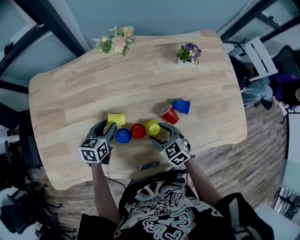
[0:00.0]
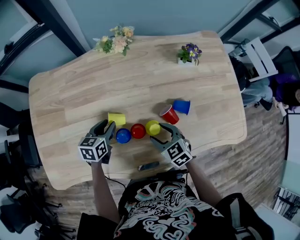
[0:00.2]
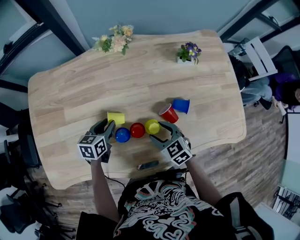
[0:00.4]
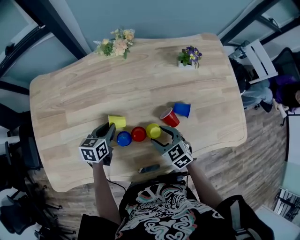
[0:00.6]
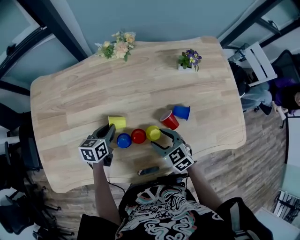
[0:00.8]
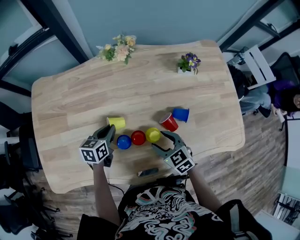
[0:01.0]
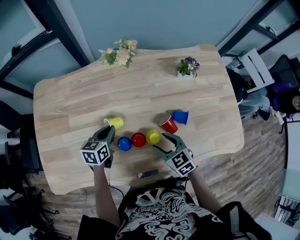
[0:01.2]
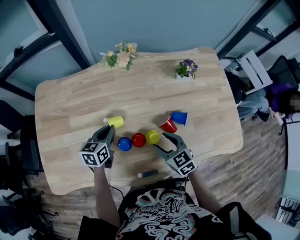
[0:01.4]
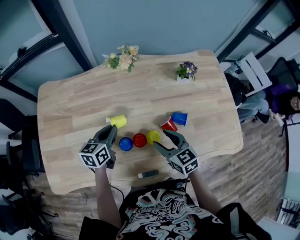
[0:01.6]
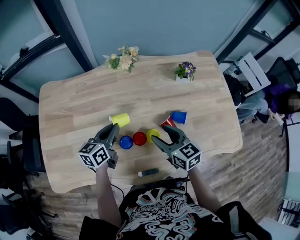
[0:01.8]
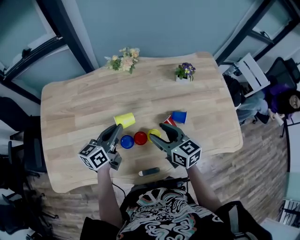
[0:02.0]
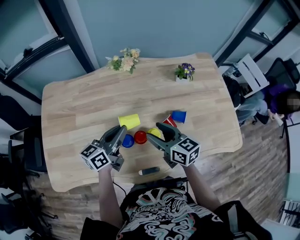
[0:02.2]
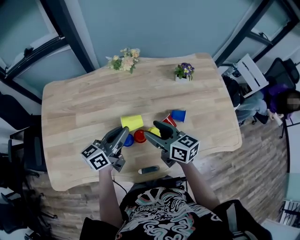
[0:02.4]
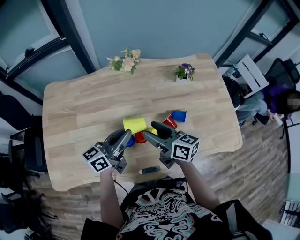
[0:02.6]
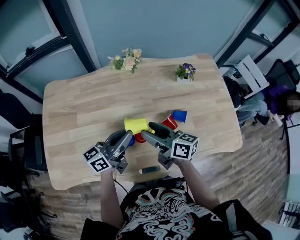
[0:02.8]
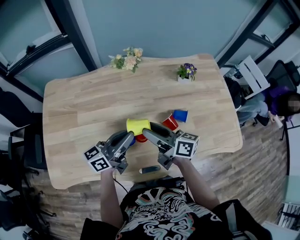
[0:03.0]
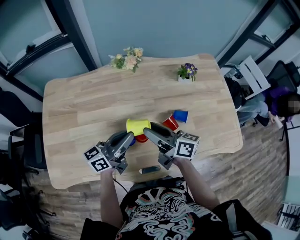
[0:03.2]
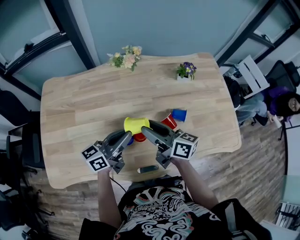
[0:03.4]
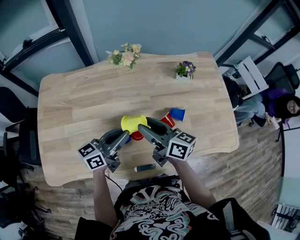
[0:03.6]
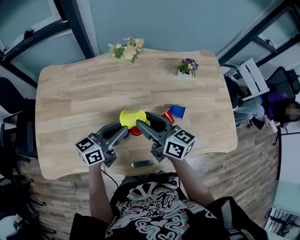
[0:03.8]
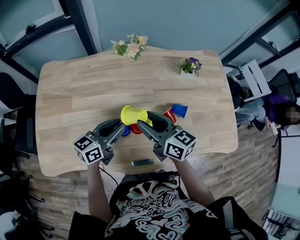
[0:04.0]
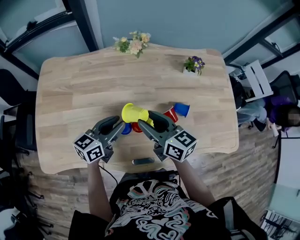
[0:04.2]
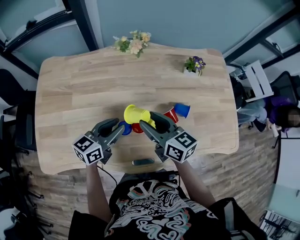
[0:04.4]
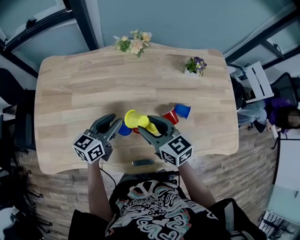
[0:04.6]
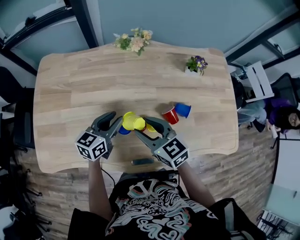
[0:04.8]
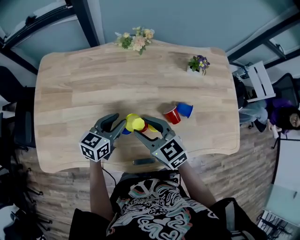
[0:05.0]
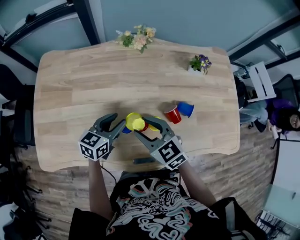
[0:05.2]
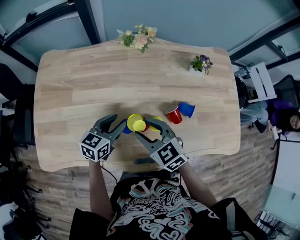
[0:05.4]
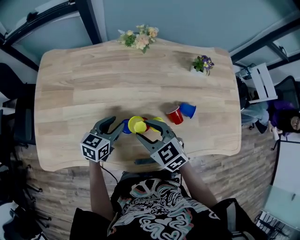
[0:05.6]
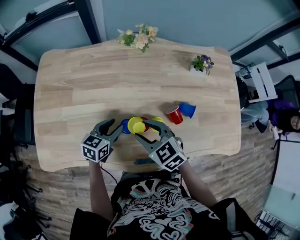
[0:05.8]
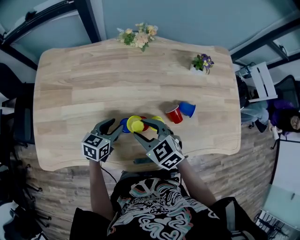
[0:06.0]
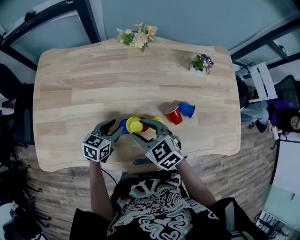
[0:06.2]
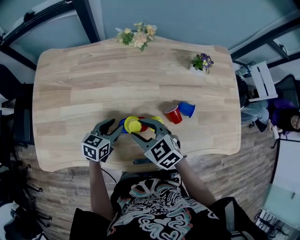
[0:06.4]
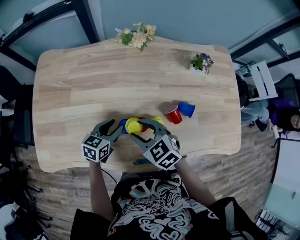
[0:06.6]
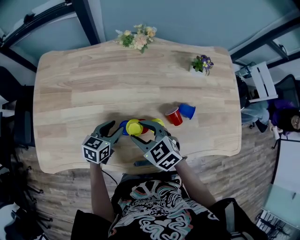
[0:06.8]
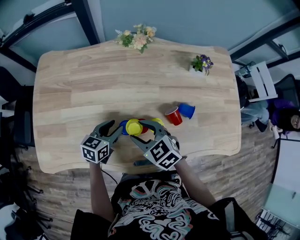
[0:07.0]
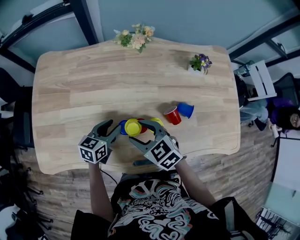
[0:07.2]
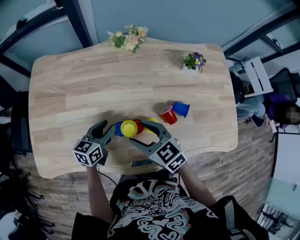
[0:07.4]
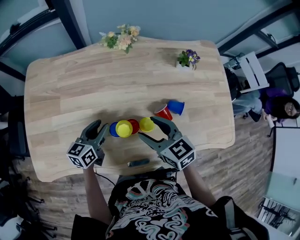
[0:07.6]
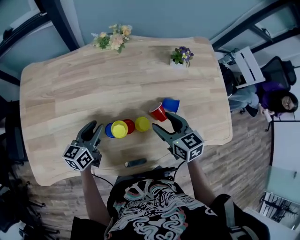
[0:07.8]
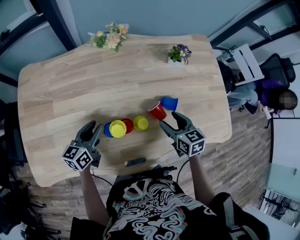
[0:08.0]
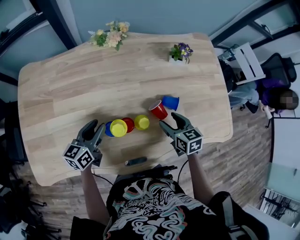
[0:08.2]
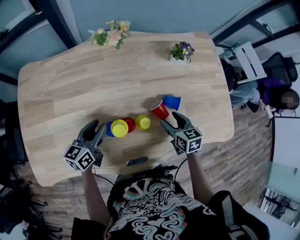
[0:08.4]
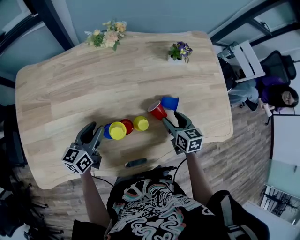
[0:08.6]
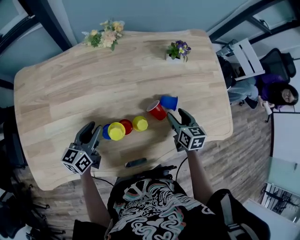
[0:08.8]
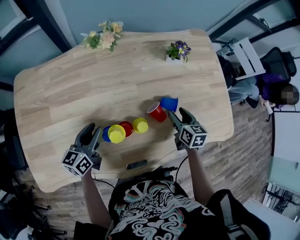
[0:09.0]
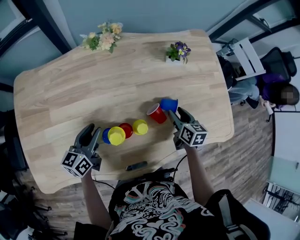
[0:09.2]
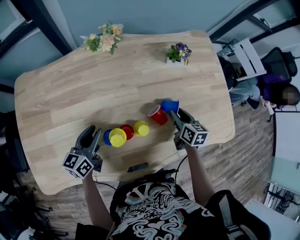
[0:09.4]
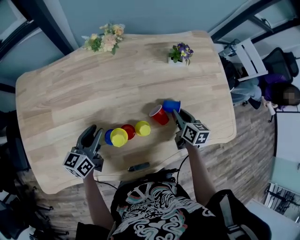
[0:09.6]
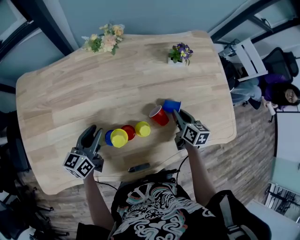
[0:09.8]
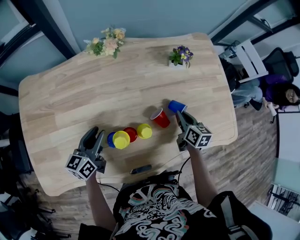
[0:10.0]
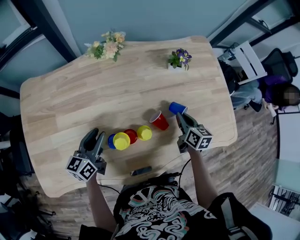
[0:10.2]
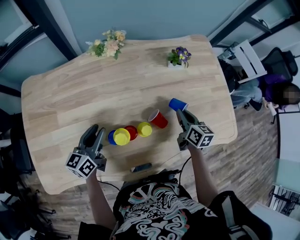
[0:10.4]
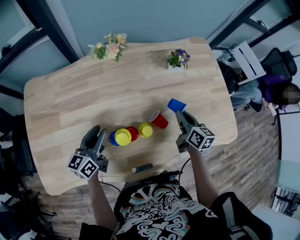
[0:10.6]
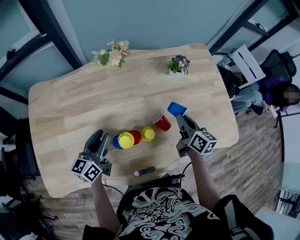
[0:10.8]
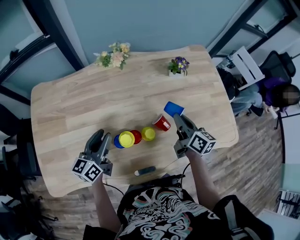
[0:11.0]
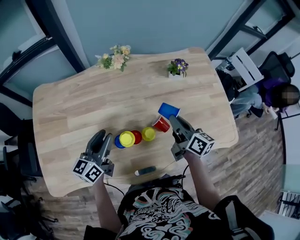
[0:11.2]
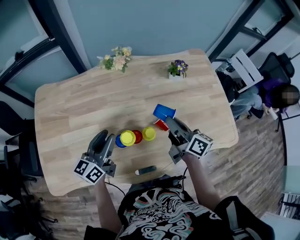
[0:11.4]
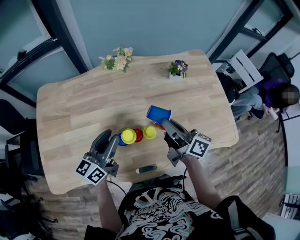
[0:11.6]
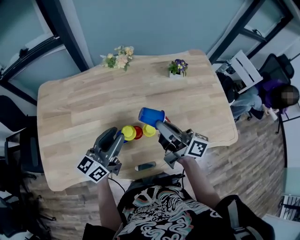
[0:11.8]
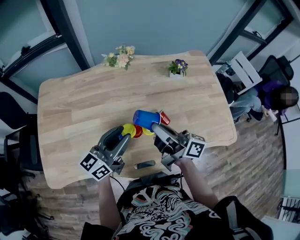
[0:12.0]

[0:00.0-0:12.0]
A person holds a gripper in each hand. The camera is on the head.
0:00.0 to 0:01.6: The two grippers go roughly 10 cm upward. The left gripper closes its fingers.
0:01.6 to 0:03.0: The left gripper travels upward, backward and to the right by about 15 cm, and angles its fingers upward, by roughly 40 degrees. The right gripper moves upward and to the left, approximately 10 cm, and swivels roughly 50 degrees.
0:03.0 to 0:04.4: The right gripper rotates some 30 degrees; the left gripper goes some 5 cm downward, changes its angle by some 30 degrees, and opens up.
0:04.4 to 0:06.0: The right gripper heads downward, covering approximately 5 cm, and changes its angle by about 40 degrees, while the left gripper moves downward, some 10 cm, and changes its angle by some 20 degrees.
0:06.0 to 0:07.6: The right gripper travels to the right by about 5 cm, and rotates approximately 20 degrees.
0:07.6 to 0:09.0: The right gripper is displaced to the right and downward by roughly 25 cm, and rotates approximately 40 degrees.
0:09.0 to 0:10.4: The right gripper closes up.
0:10.4 to 0:12.0: The left gripper travels upward, backward and to the right by some 15 cm, and changes its angle by approximately 20 degrees, while the right gripper goes approximately 25 cm upward, to the left and backward, and tips its fingers upward by about 40 degrees.

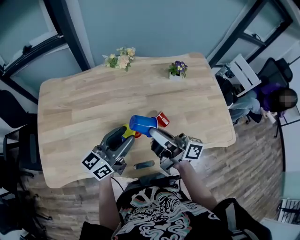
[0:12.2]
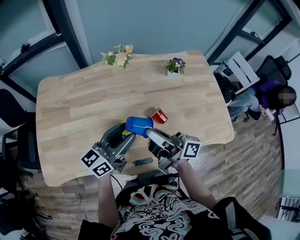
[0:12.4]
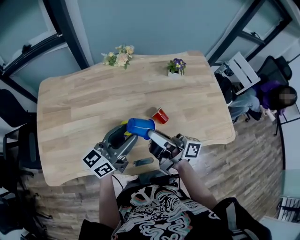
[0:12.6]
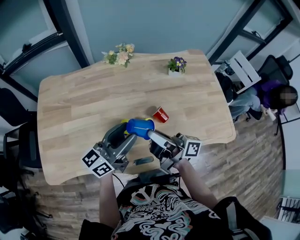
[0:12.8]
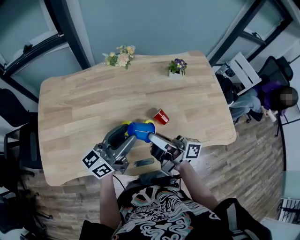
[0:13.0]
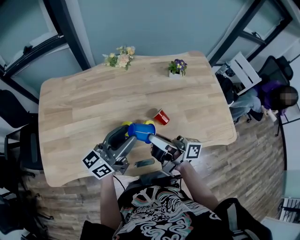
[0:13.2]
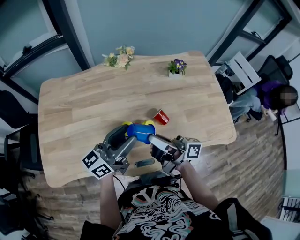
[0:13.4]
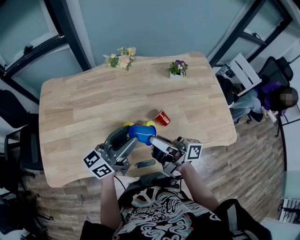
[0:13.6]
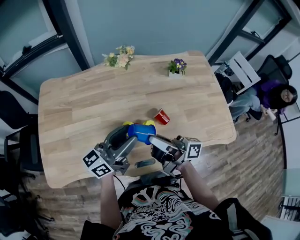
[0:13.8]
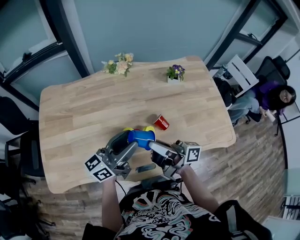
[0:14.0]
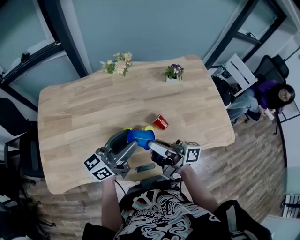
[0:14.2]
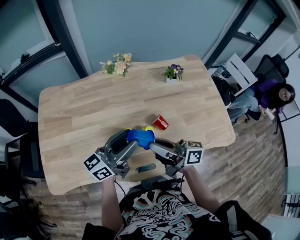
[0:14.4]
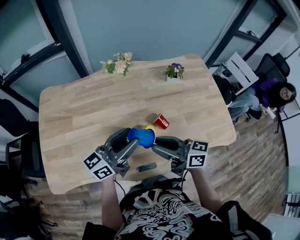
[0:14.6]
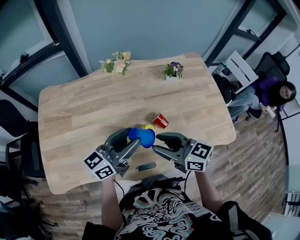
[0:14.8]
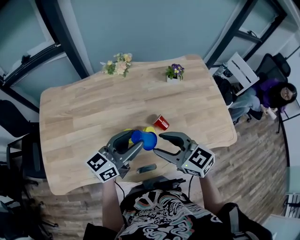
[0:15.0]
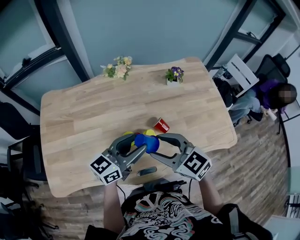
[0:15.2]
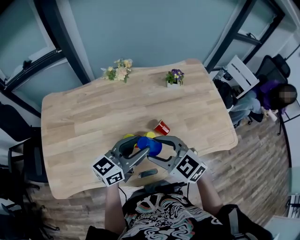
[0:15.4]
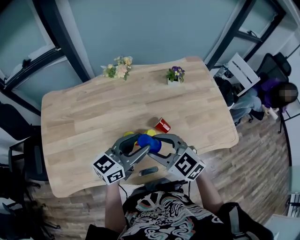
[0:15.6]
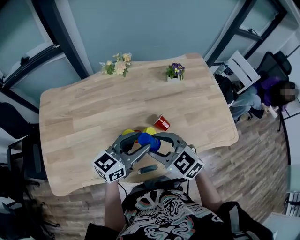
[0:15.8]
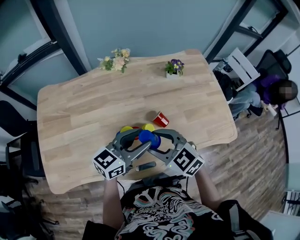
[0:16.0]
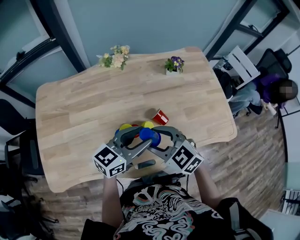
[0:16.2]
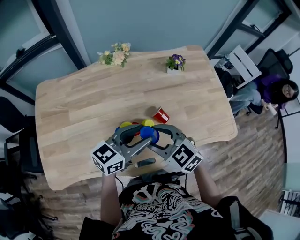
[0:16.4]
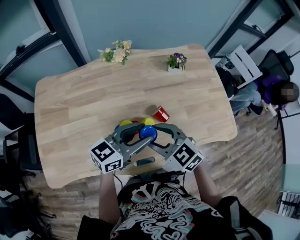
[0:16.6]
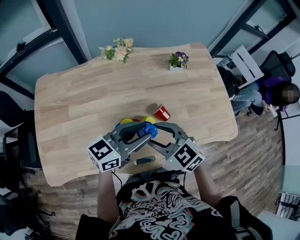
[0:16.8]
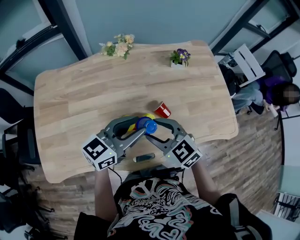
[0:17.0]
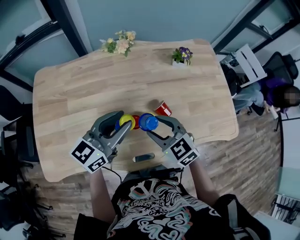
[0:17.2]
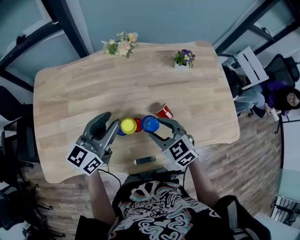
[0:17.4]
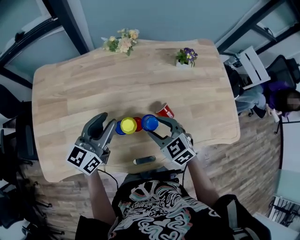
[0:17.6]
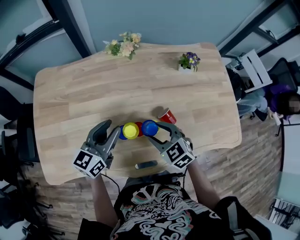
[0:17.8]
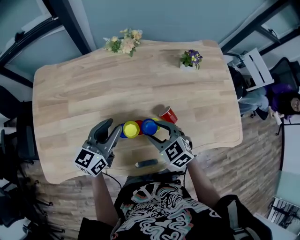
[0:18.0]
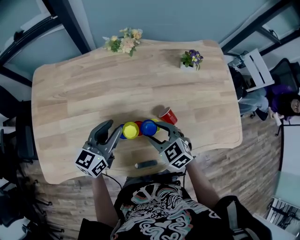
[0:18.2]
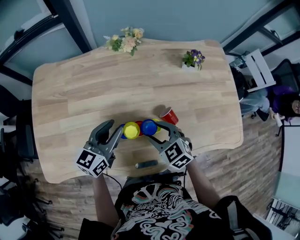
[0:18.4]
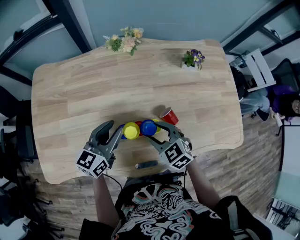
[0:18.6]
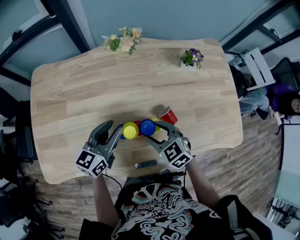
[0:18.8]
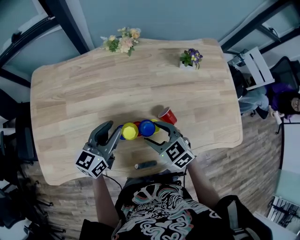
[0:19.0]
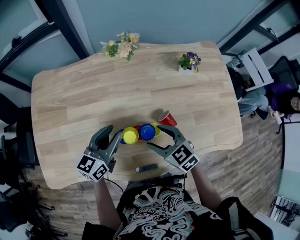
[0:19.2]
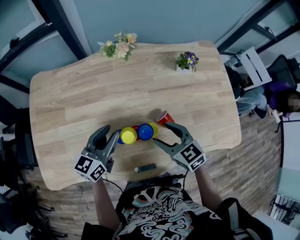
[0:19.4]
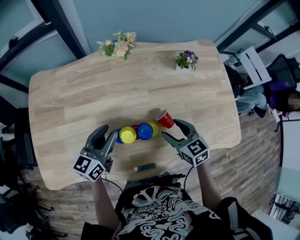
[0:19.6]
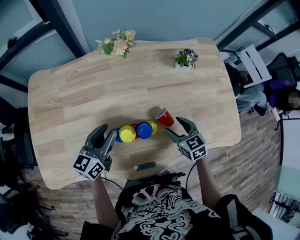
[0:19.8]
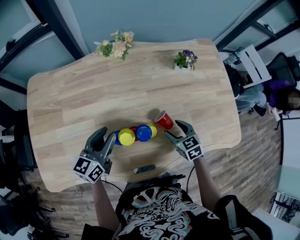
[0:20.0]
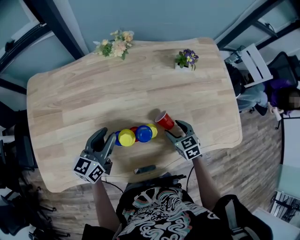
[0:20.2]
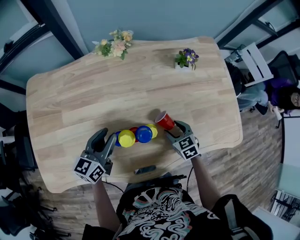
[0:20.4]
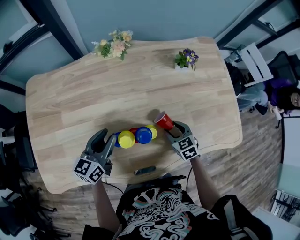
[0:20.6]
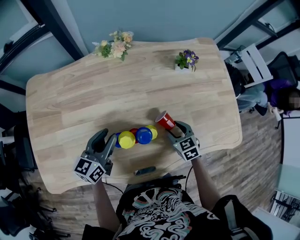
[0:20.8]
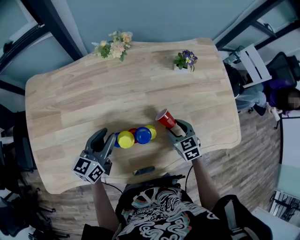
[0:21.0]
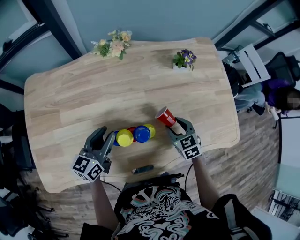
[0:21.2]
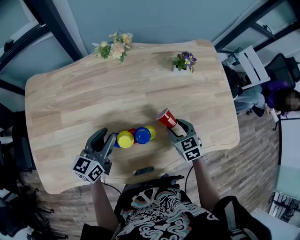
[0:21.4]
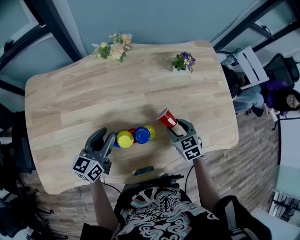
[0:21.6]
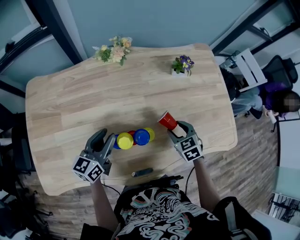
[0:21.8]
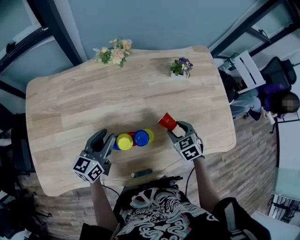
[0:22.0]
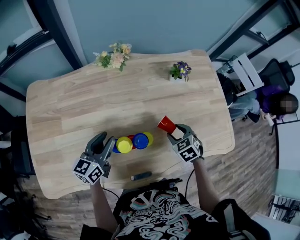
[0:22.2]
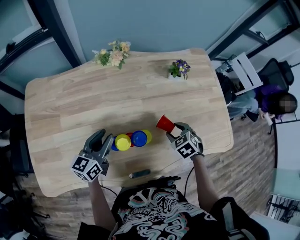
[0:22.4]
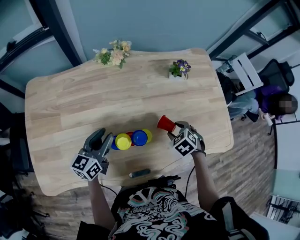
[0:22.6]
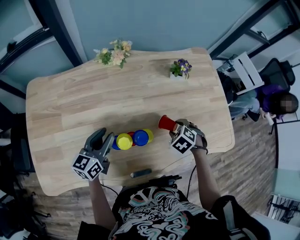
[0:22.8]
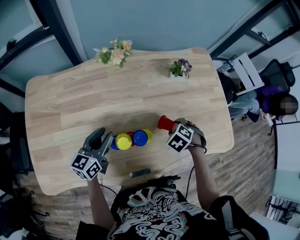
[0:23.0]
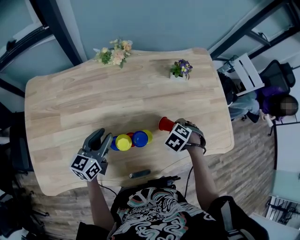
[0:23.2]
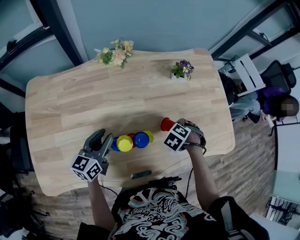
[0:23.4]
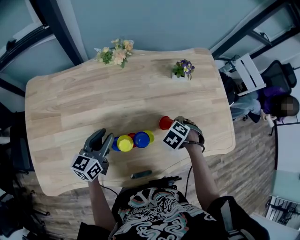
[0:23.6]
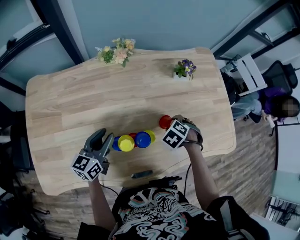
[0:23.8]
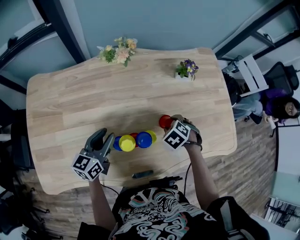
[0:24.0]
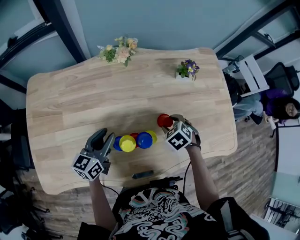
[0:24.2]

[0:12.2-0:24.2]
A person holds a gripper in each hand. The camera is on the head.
0:12.2 to 0:13.8: There are only small adjustments of the grippers.
0:13.8 to 0:15.2: The right gripper angles its fingers downward, by approximately 50 degrees, and opens.
0:15.2 to 0:16.6: The right gripper is displaced downward by approximately 5 cm.
0:16.6 to 0:18.2: The left gripper travels to the left, downward and forward by about 15 cm, and swivels roughly 30 degrees. Meanwhile the right gripper goes some 10 cm downward.
0:18.2 to 0:19.8: The right gripper travels to the right by roughly 10 cm, and changes its angle by approximately 20 degrees.
0:21.2 to 0:22.6: The right gripper swivels some 30 degrees.
0:22.6 to 0:24.2: The right gripper changes place by approximately 5 cm.
